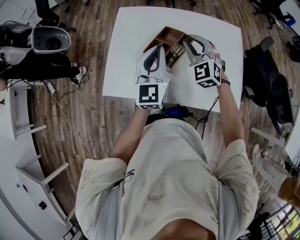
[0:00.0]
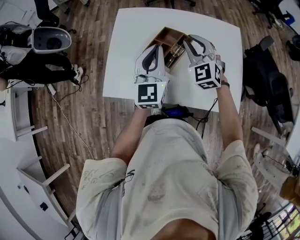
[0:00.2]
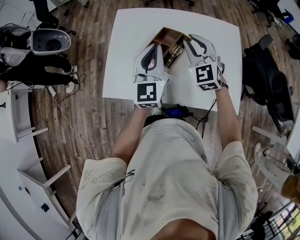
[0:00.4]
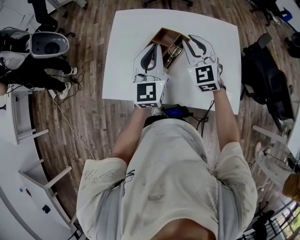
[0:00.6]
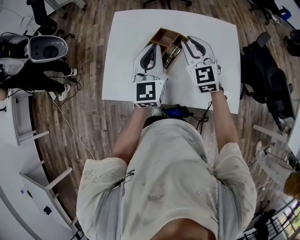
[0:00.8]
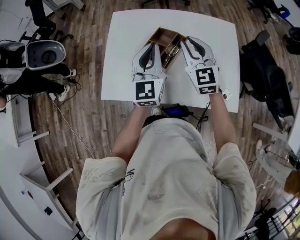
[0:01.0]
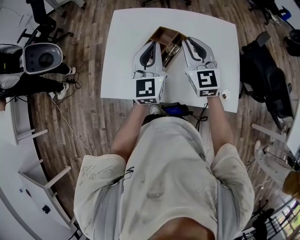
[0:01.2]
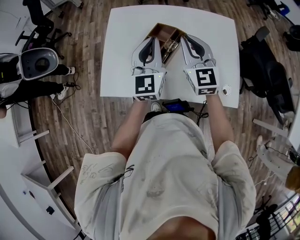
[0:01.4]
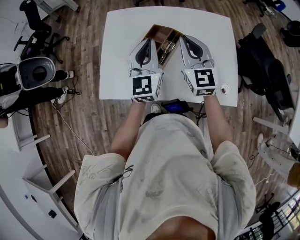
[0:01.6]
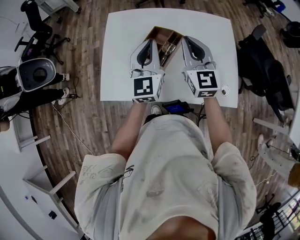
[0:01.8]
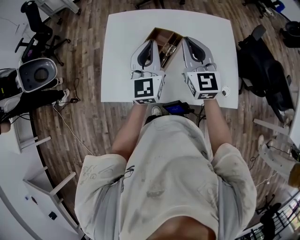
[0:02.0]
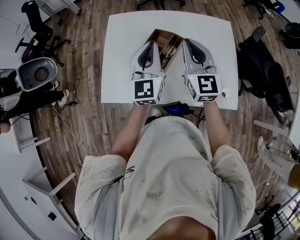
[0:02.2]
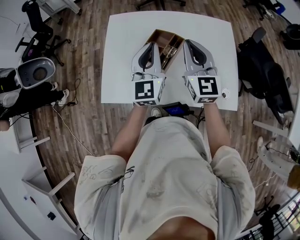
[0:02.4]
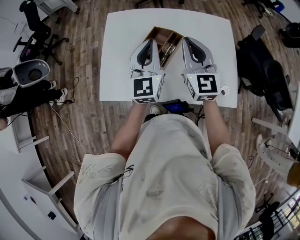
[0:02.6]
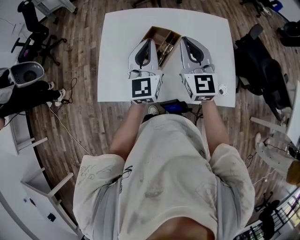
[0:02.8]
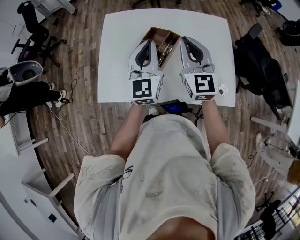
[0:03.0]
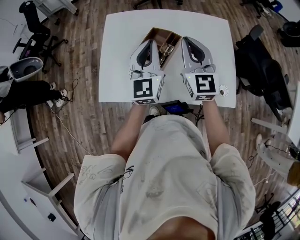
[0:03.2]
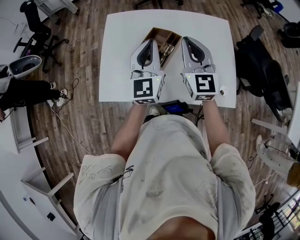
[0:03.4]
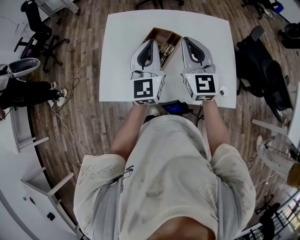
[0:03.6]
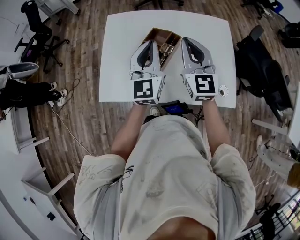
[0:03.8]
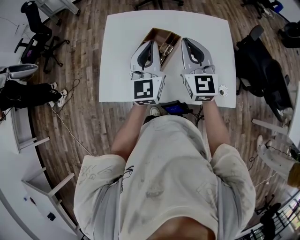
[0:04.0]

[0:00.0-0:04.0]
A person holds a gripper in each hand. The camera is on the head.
0:00.0 to 0:01.4: The right gripper shifts about 5 cm upward, and rotates approximately 30 degrees.
0:01.4 to 0:02.6: The grippers stay close to where they were, moving slightly.
0:02.6 to 0:04.0: Both grippers stay about where they are.

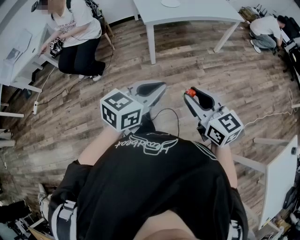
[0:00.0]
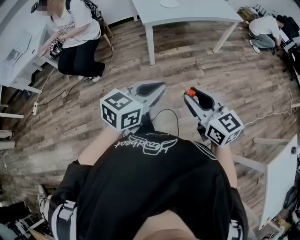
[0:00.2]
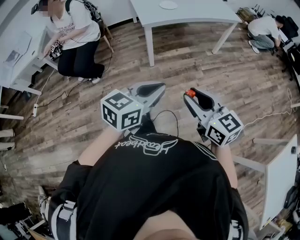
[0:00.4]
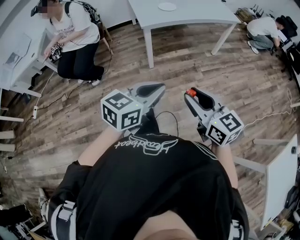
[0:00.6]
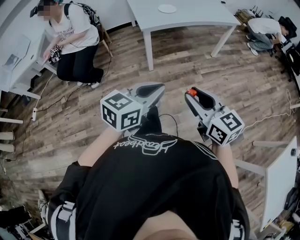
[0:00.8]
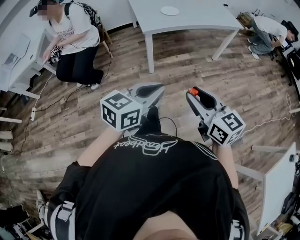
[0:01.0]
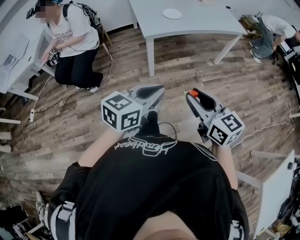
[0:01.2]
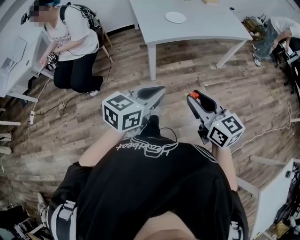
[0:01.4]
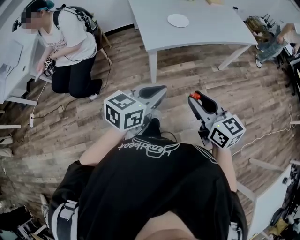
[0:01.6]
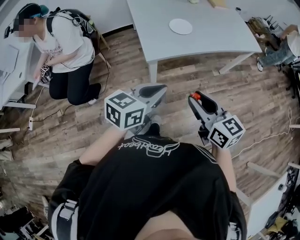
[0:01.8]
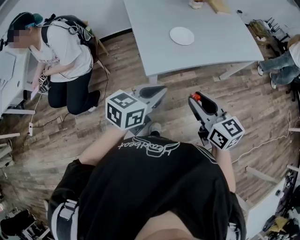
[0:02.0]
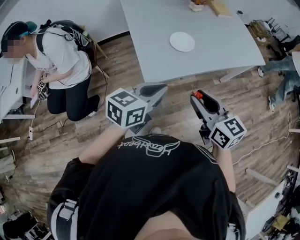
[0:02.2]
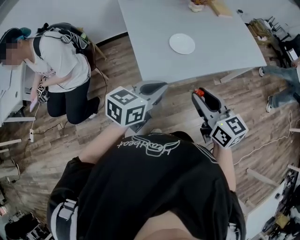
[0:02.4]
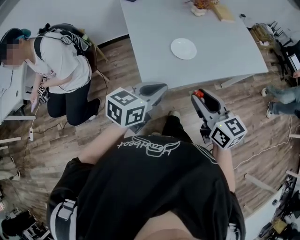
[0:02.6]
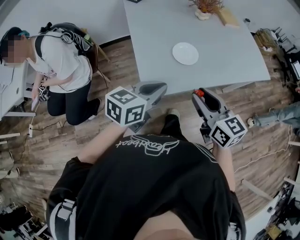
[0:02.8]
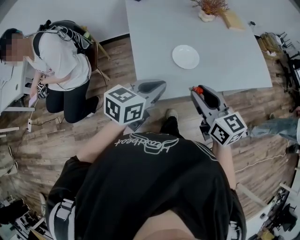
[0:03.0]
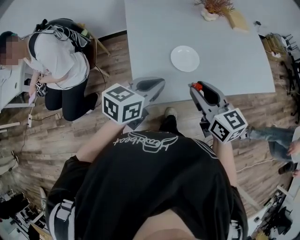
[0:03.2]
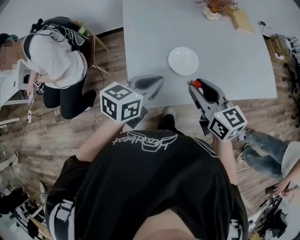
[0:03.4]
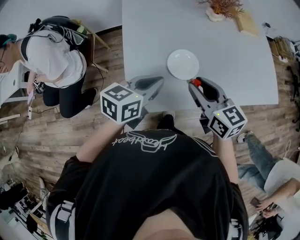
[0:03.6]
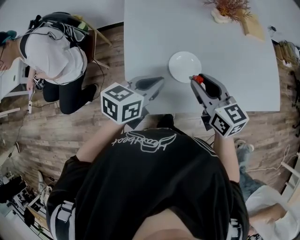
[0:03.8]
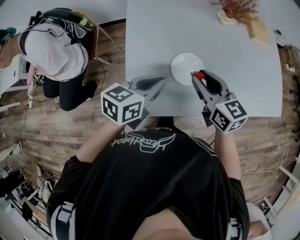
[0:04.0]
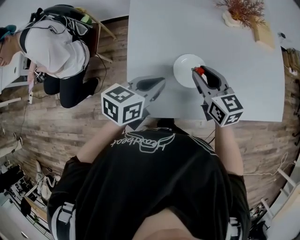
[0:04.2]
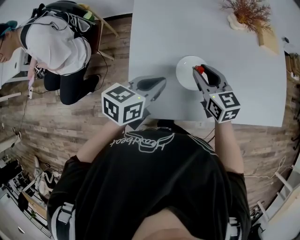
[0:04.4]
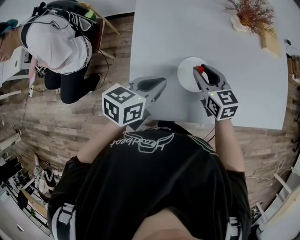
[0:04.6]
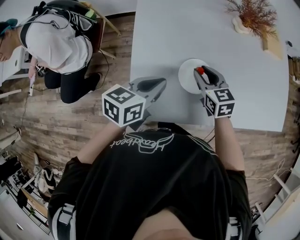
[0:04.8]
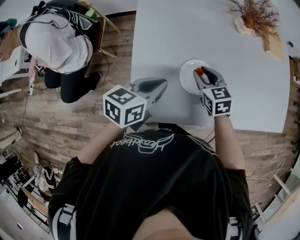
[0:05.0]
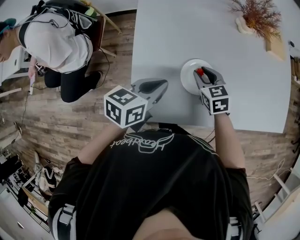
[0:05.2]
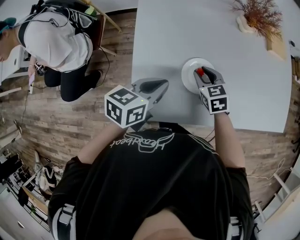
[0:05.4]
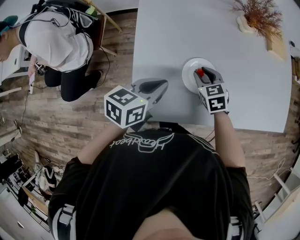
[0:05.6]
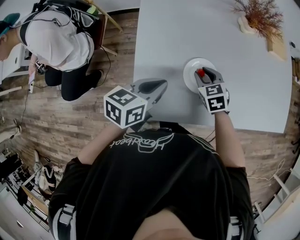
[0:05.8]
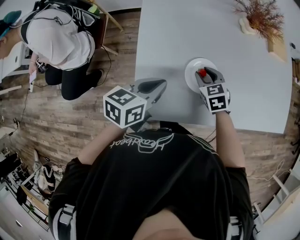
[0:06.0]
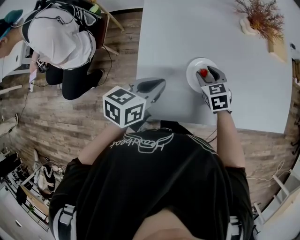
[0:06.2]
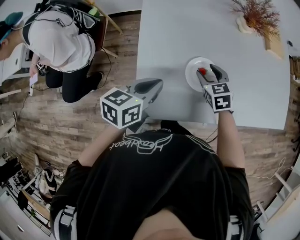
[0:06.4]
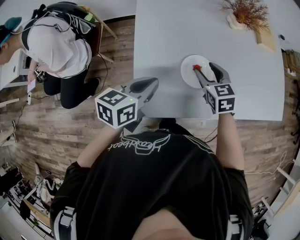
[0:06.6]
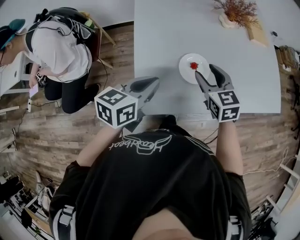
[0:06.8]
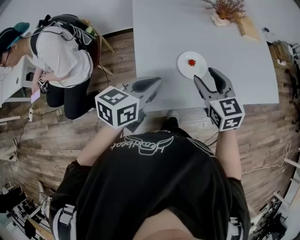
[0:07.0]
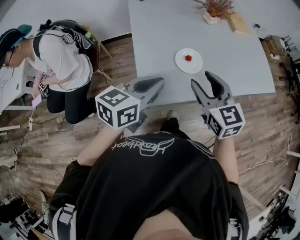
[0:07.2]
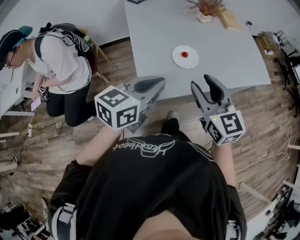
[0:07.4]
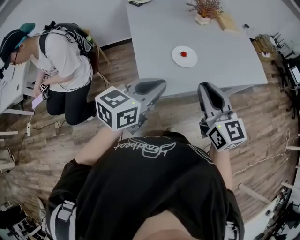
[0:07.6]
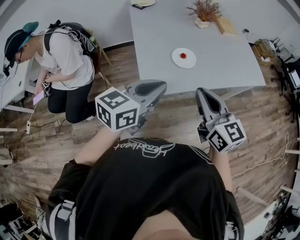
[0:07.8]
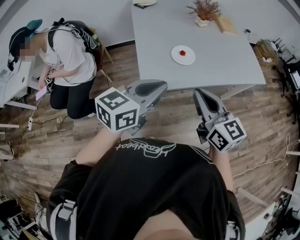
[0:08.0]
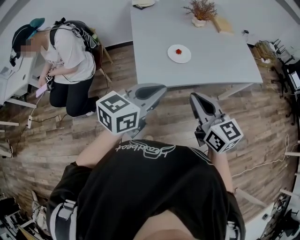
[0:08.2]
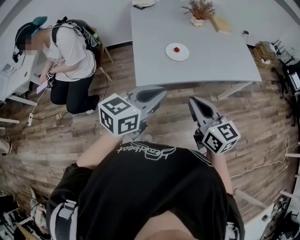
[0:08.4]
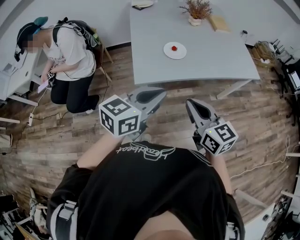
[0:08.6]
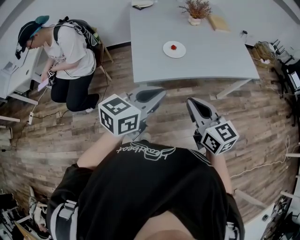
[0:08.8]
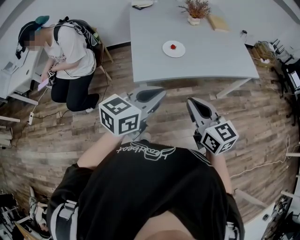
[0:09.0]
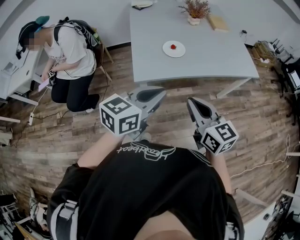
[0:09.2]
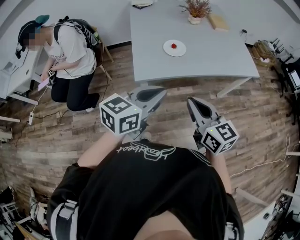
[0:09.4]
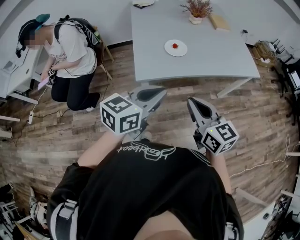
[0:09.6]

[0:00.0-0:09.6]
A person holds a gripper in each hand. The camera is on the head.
0:00.0 to 0:01.6: Both grippers travel together forward, about 30 cm.
0:01.6 to 0:03.2: Both grippers are carried forward, approximately 40 cm.
0:03.2 to 0:04.8: The right gripper is displaced forward and downward by approximately 25 cm, and swivels about 20 degrees. Meanwhile the left gripper is displaced forward and downward by approximately 15 cm.
0:04.8 to 0:06.4: The grippers stay close to where they were, moving slightly.
0:06.4 to 0:08.0: The right gripper heads backward and upward, covering roughly 40 cm, points its fingers some 40 degrees further upward, and closes. The left gripper heads backward and upward, covering about 30 cm, and changes its angle by roughly 30 degrees.
0:08.0 to 0:09.6: Both grippers move backward and to the right, about 10 cm.

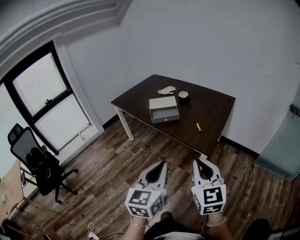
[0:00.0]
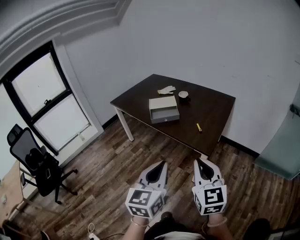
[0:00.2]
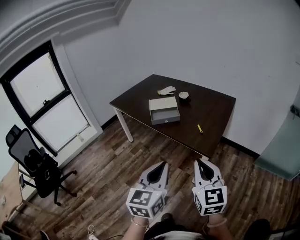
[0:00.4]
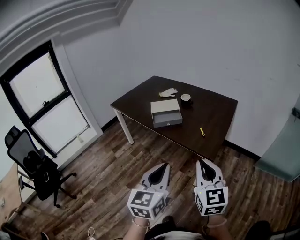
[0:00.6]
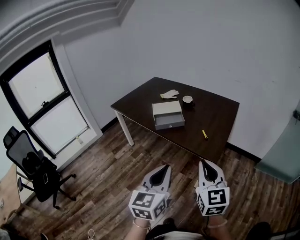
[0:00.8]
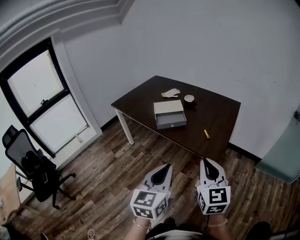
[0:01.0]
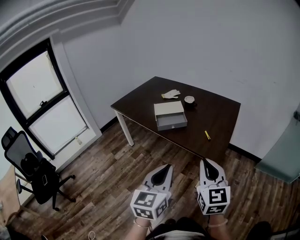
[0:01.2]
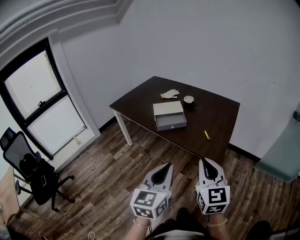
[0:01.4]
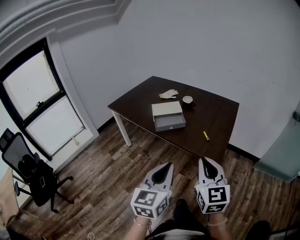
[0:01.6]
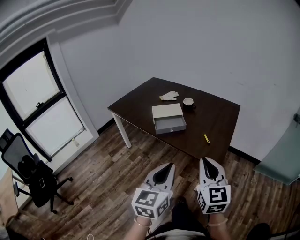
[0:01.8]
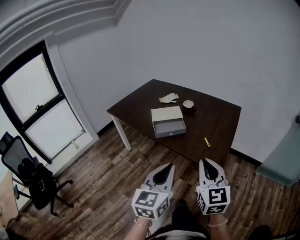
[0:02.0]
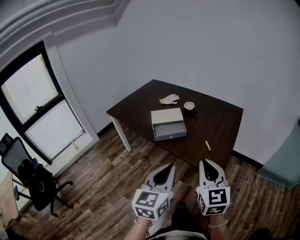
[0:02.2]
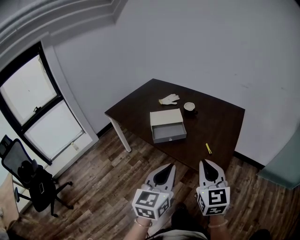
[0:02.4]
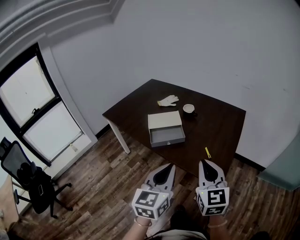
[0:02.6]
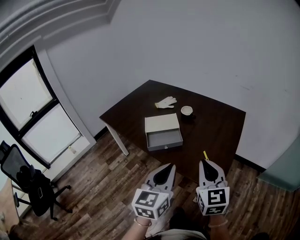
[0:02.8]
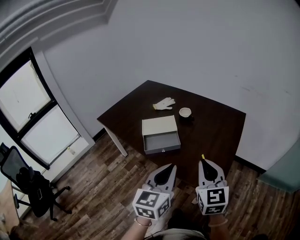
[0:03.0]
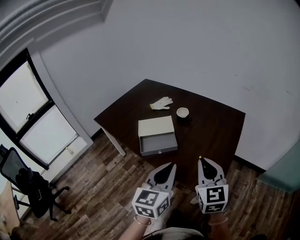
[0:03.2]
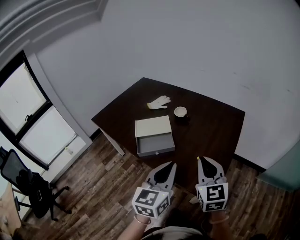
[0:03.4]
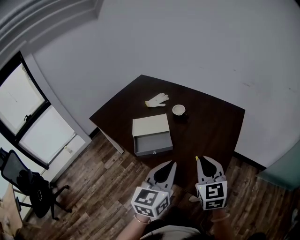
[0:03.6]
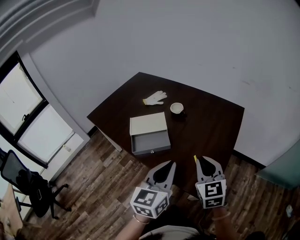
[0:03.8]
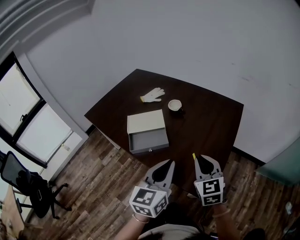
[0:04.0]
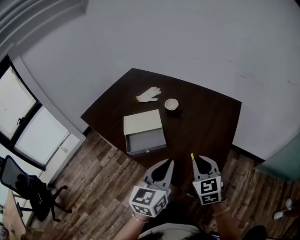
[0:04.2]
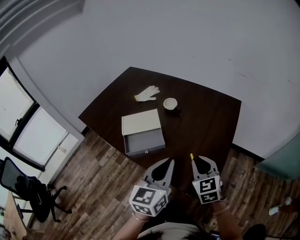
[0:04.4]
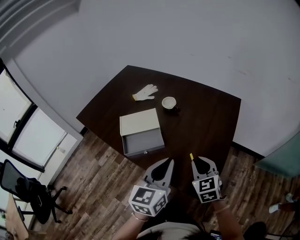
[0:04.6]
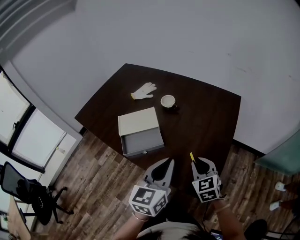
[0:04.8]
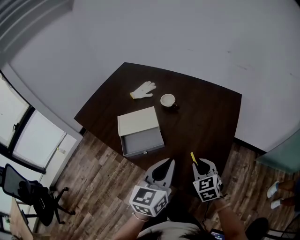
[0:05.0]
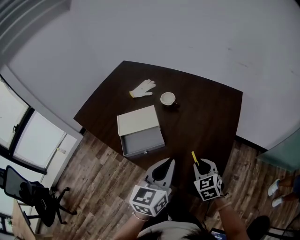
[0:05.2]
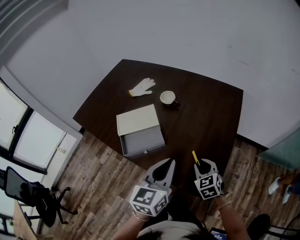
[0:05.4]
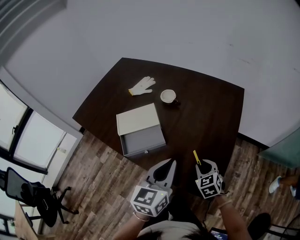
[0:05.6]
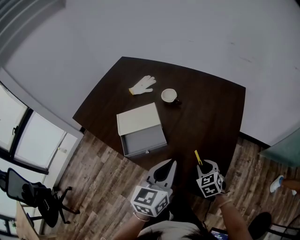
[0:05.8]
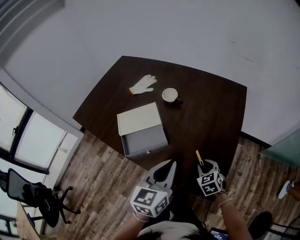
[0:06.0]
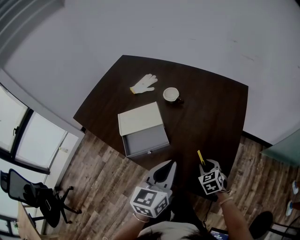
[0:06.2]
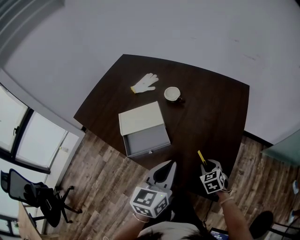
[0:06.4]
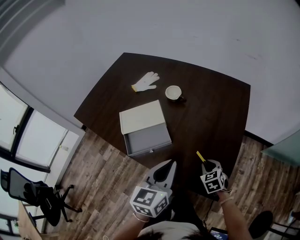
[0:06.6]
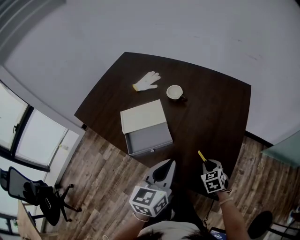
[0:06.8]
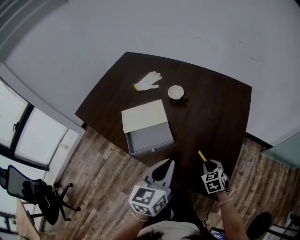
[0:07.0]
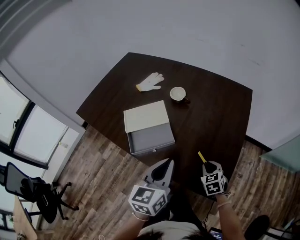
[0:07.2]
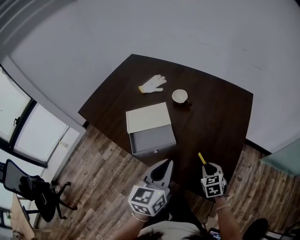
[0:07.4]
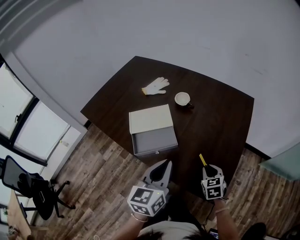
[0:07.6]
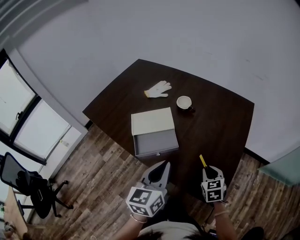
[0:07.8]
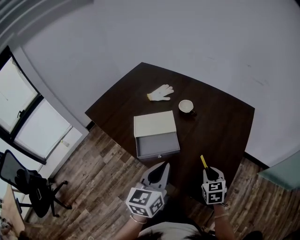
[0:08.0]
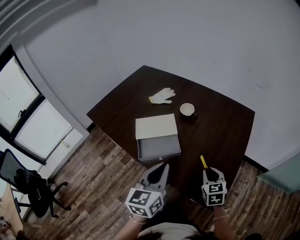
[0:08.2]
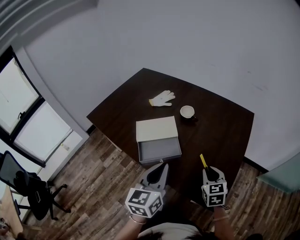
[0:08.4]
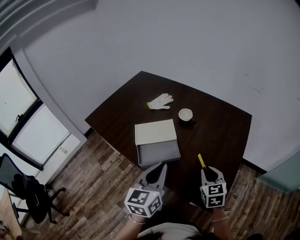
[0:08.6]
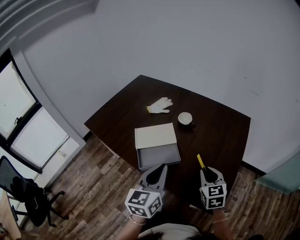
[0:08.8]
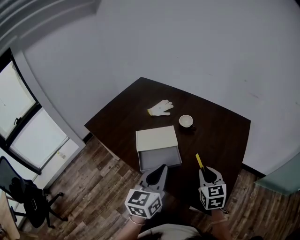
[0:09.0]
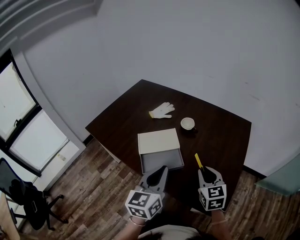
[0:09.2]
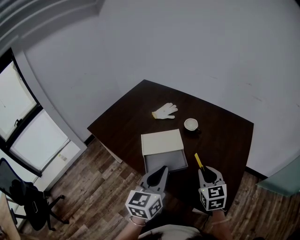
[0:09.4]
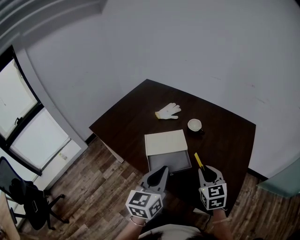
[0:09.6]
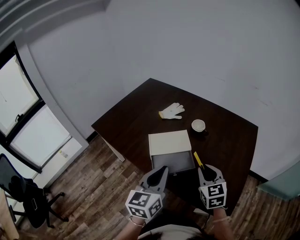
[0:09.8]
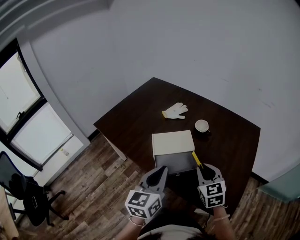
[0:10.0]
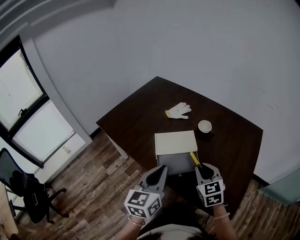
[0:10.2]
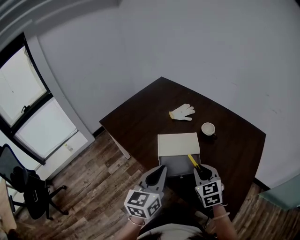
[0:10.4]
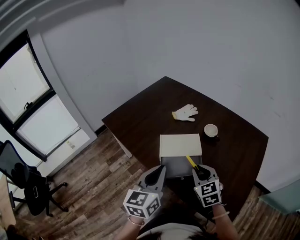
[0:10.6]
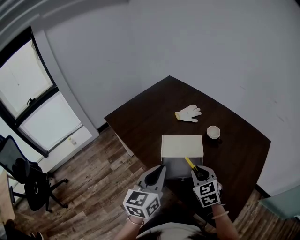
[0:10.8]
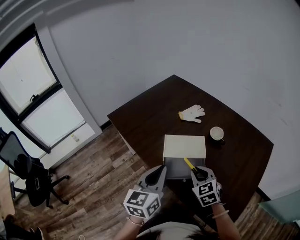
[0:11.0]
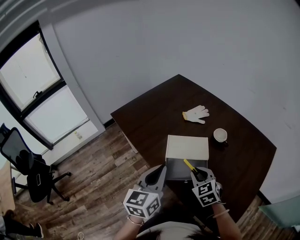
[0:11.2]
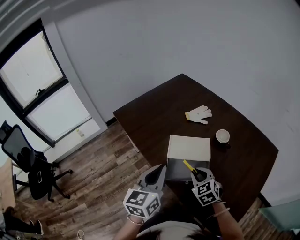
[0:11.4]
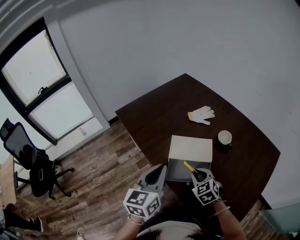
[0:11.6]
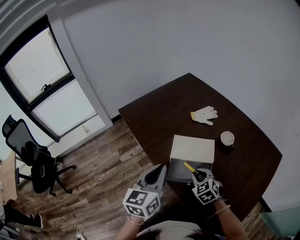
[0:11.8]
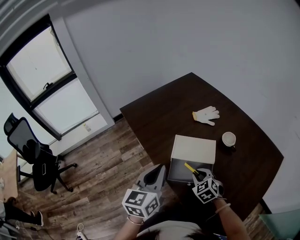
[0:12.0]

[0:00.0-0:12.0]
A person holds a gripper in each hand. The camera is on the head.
0:00.0 to 0:01.6: Both grippers move forward and to the left, approximately 15 cm.
0:01.6 to 0:03.0: The grippers both shift forward by some 25 cm.
0:03.0 to 0:04.4: The left gripper goes approximately 15 cm forward and to the right, while the right gripper heads forward, downward and to the right, covering approximately 20 cm.
0:04.4 to 0:06.0: The right gripper travels downward by about 20 cm, and swivels some 20 degrees. Meanwhile the left gripper moves downward and forward, approximately 10 cm.
0:06.0 to 0:07.6: The left gripper travels to the left by some 5 cm.
0:07.6 to 0:09.0: The left gripper heads to the left, covering roughly 5 cm. Meanwhile the right gripper is displaced upward and to the left by some 15 cm.
0:09.0 to 0:10.4: The two grippers go about 15 cm to the left.
0:10.4 to 0:12.0: The left gripper shifts by approximately 5 cm, while the right gripper is displaced downward and forward by approximately 15 cm, and changes its angle by approximately 30 degrees.
